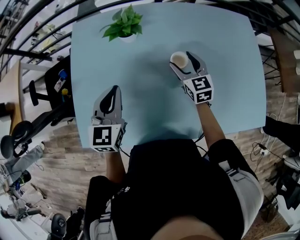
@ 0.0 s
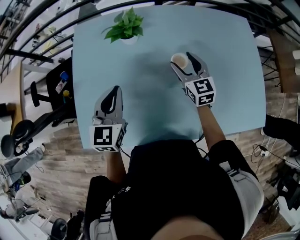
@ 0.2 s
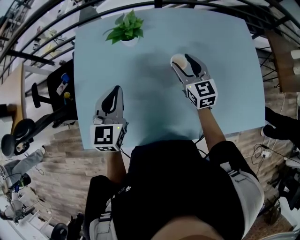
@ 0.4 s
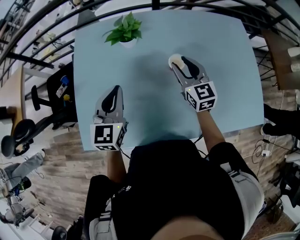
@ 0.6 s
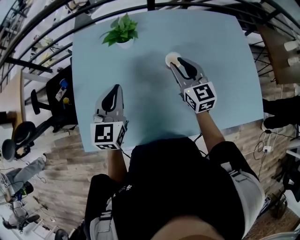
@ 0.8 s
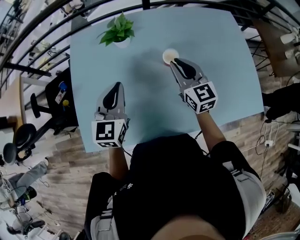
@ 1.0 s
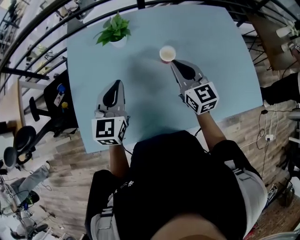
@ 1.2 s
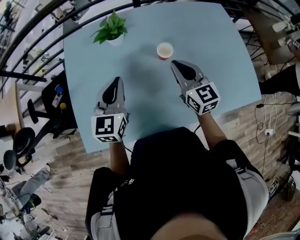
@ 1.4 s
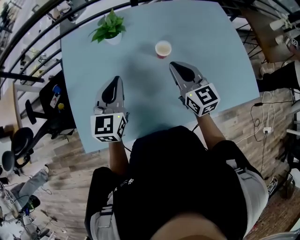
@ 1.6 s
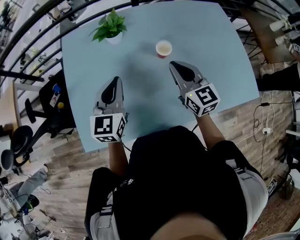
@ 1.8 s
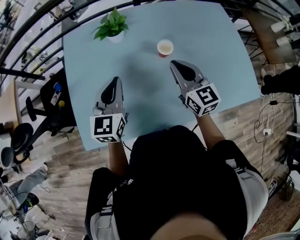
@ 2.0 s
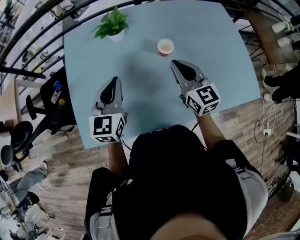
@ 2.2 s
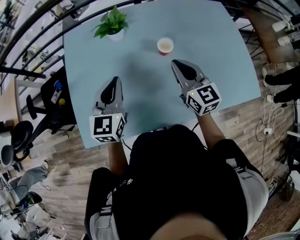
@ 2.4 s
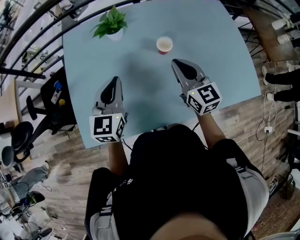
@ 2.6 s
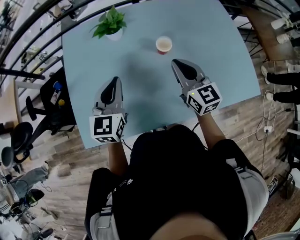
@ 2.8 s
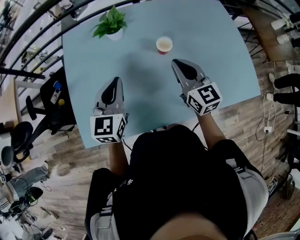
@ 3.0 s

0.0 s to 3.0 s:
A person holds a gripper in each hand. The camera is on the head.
0.0 to 1.6 s: The right gripper heads backward and upward, covering some 15 cm, and closes up.
1.6 to 3.0 s: The grippers move only a little.

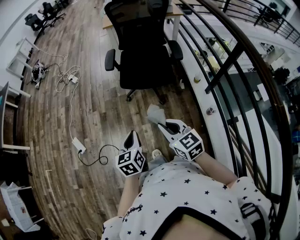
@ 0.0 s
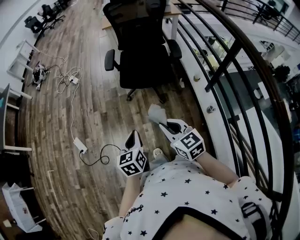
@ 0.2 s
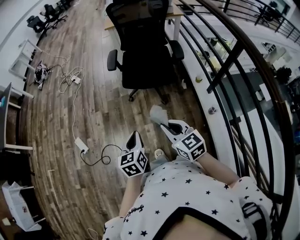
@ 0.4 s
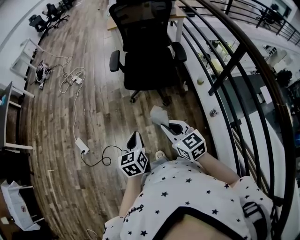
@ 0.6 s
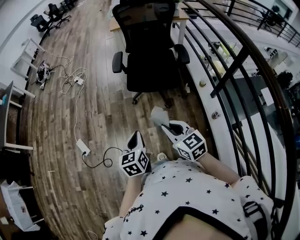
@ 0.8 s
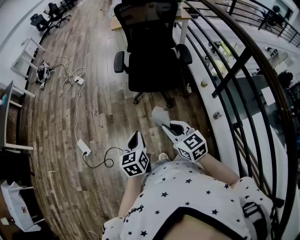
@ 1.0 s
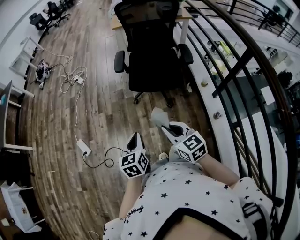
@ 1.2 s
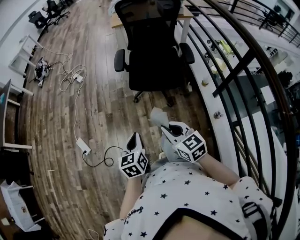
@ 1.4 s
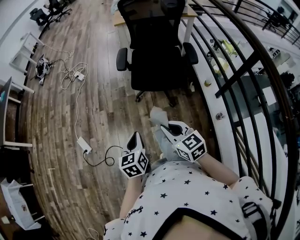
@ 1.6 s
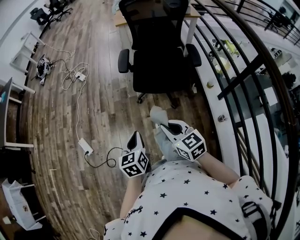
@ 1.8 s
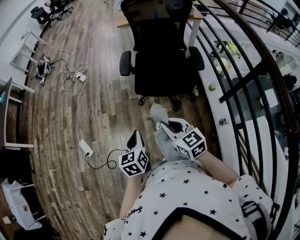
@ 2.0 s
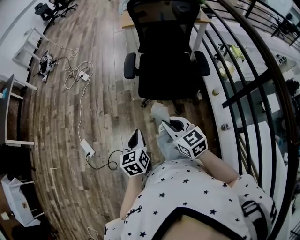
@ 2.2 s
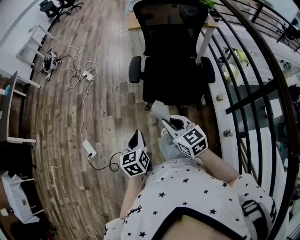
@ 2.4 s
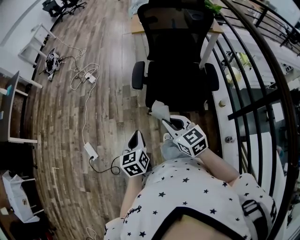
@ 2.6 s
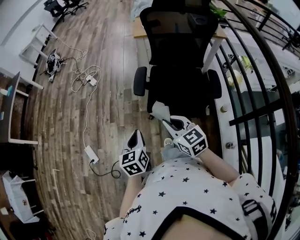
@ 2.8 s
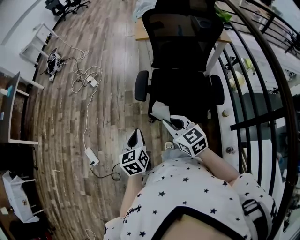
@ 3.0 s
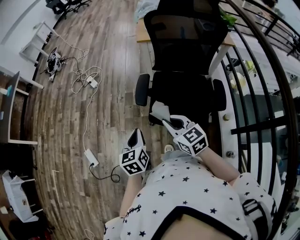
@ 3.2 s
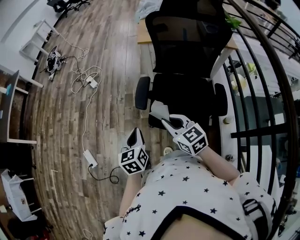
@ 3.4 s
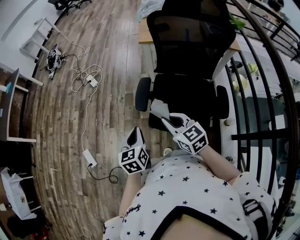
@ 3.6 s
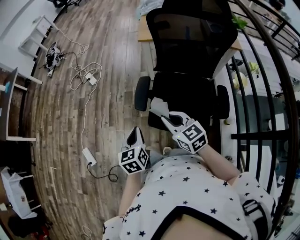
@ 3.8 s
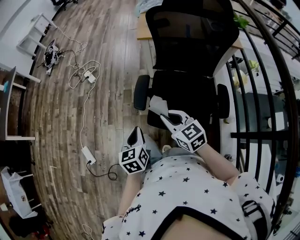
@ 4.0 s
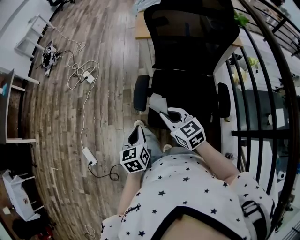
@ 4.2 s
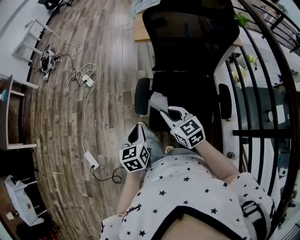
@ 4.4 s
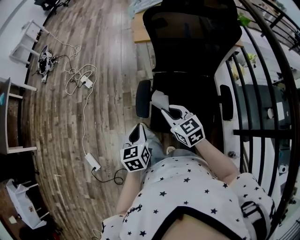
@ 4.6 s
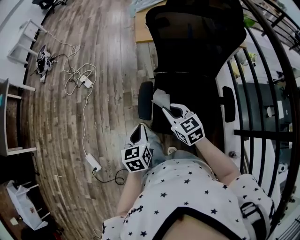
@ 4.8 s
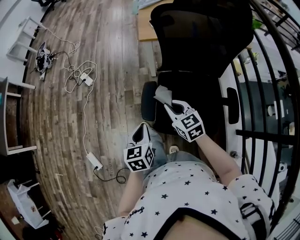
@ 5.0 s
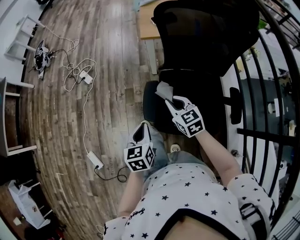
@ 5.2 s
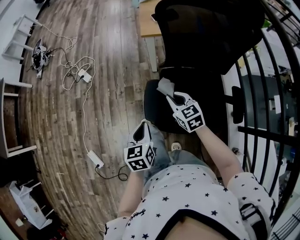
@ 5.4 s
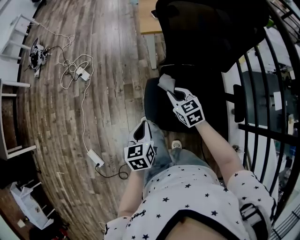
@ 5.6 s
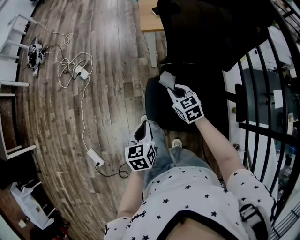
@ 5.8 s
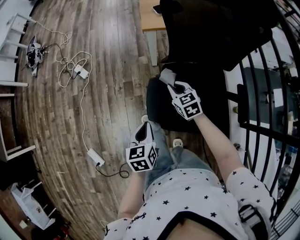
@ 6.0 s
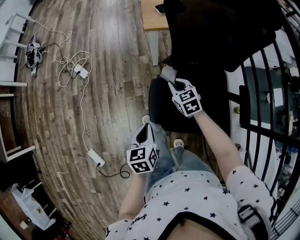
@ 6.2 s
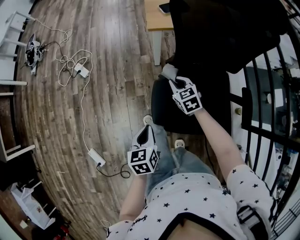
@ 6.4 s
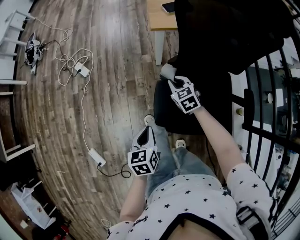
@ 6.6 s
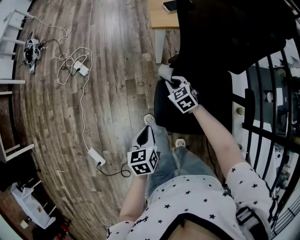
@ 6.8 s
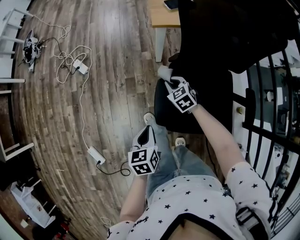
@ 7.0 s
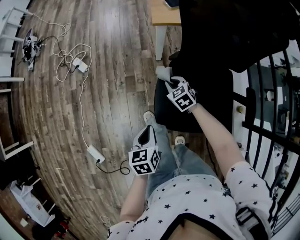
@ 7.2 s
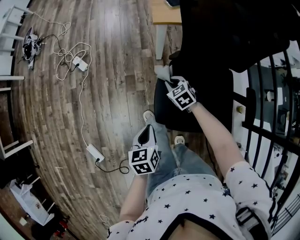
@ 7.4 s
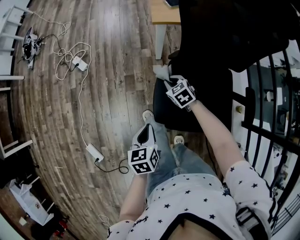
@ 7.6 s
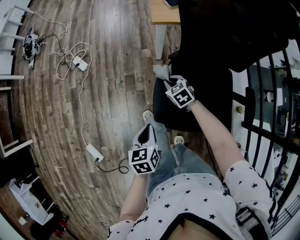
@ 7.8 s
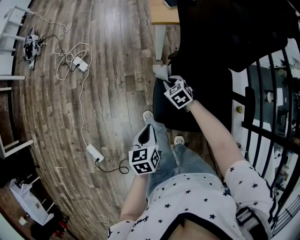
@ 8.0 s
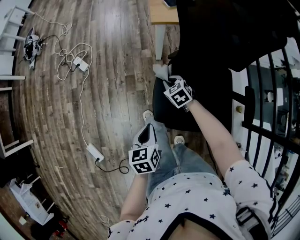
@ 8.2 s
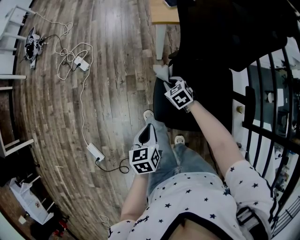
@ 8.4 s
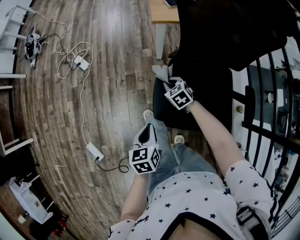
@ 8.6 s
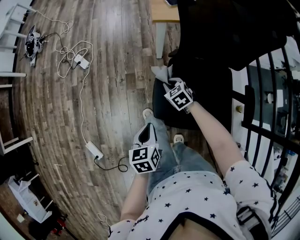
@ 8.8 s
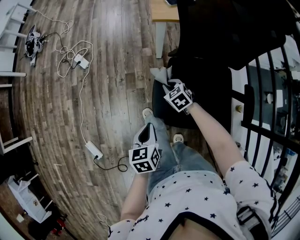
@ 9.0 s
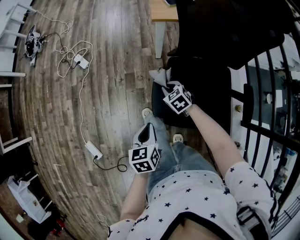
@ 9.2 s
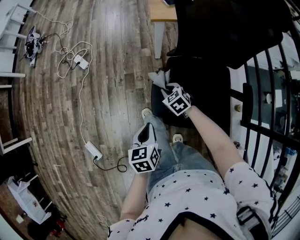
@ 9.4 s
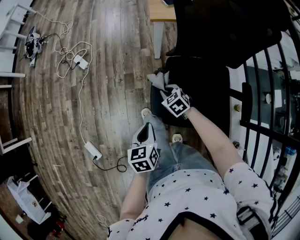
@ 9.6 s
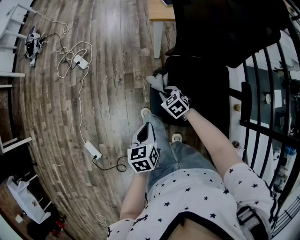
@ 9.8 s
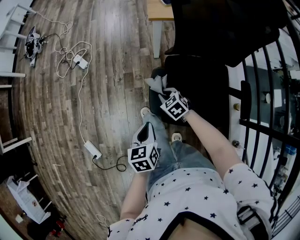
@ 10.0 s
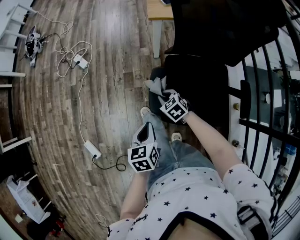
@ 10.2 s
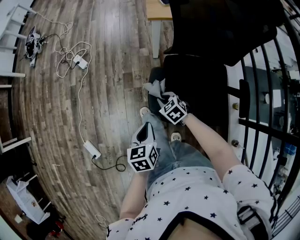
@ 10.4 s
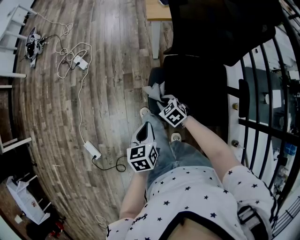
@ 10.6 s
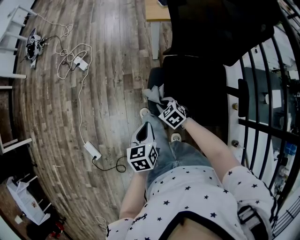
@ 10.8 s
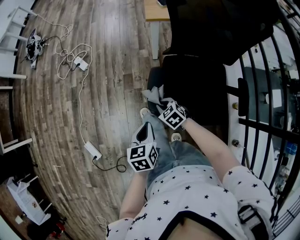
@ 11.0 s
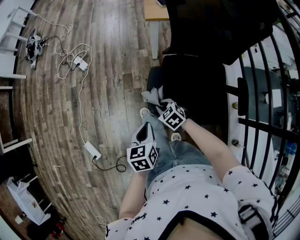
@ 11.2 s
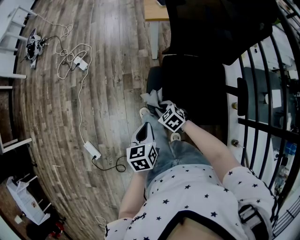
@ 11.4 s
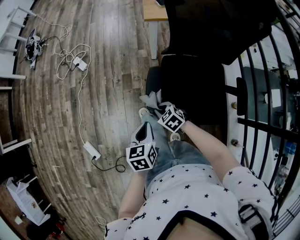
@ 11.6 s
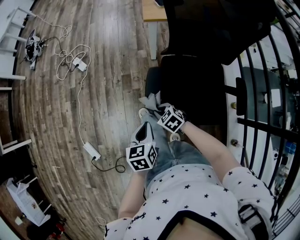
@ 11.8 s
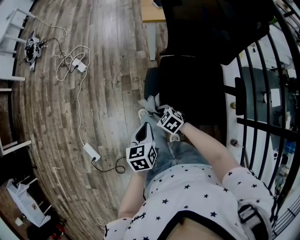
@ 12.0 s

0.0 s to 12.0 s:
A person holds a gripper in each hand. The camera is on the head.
0.0 to 1.6 s: Both grippers travel together forward, some 5 cm.
1.6 to 3.0 s: The grippers both shift forward by roughly 30 cm.
3.0 to 4.4 s: The left gripper goes approximately 15 cm forward and to the right. The right gripper moves forward, some 15 cm.
4.4 to 6.0 s: The right gripper moves forward and downward, about 25 cm; the left gripper goes roughly 10 cm forward and downward.
6.0 to 7.6 s: The right gripper shifts roughly 10 cm downward.
7.6 to 9.0 s: There are only small adjustments of the grippers.
9.0 to 10.4 s: The right gripper moves backward, approximately 10 cm.
10.4 to 12.0 s: The right gripper goes some 5 cm backward.

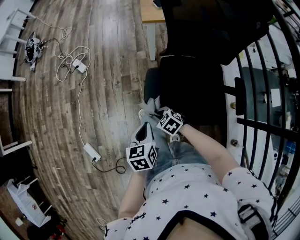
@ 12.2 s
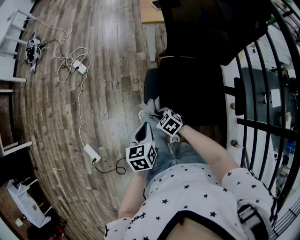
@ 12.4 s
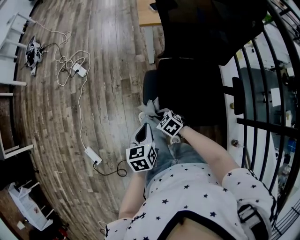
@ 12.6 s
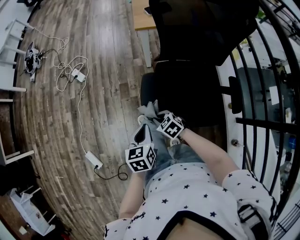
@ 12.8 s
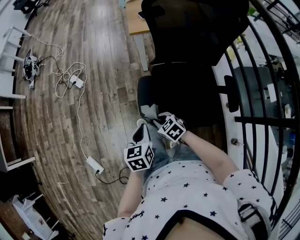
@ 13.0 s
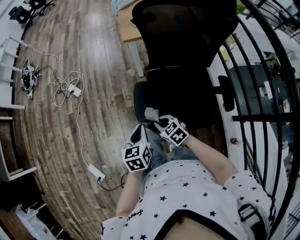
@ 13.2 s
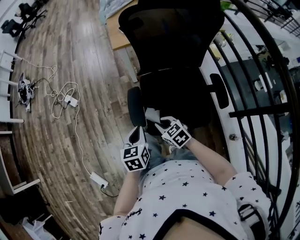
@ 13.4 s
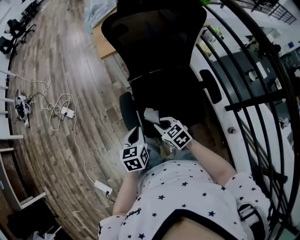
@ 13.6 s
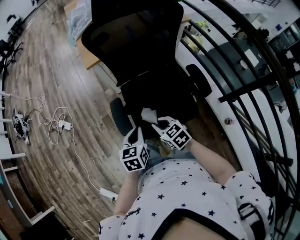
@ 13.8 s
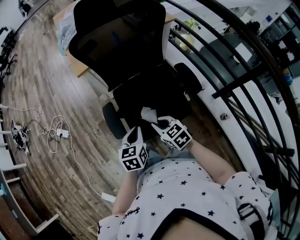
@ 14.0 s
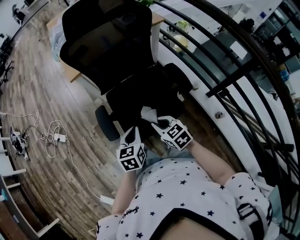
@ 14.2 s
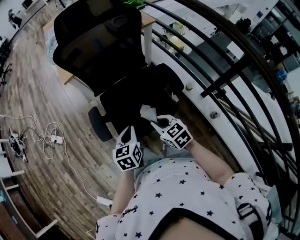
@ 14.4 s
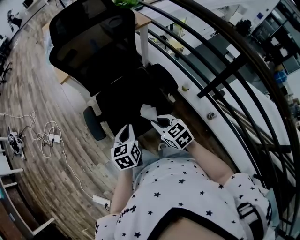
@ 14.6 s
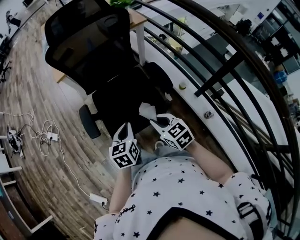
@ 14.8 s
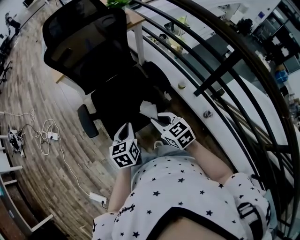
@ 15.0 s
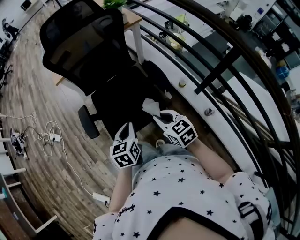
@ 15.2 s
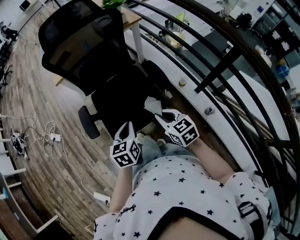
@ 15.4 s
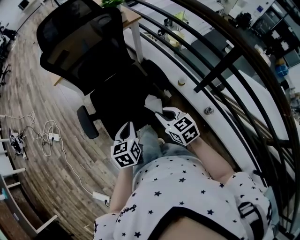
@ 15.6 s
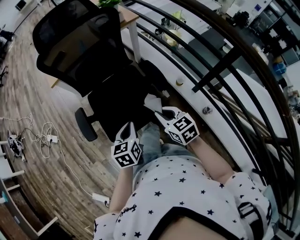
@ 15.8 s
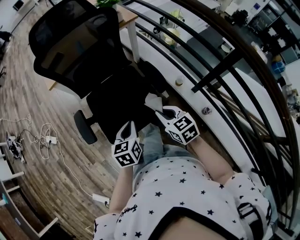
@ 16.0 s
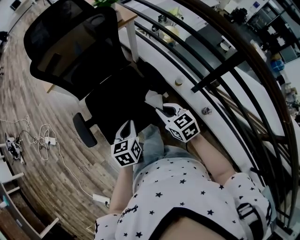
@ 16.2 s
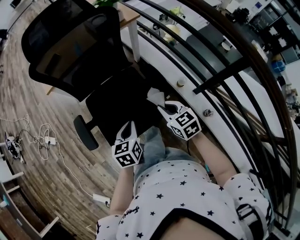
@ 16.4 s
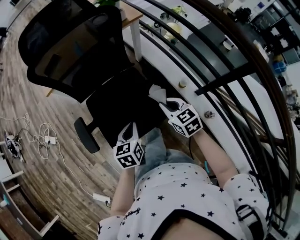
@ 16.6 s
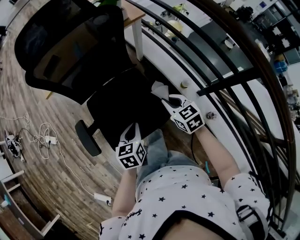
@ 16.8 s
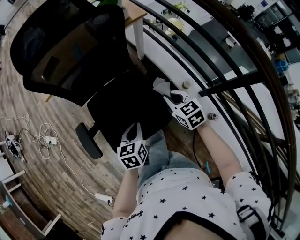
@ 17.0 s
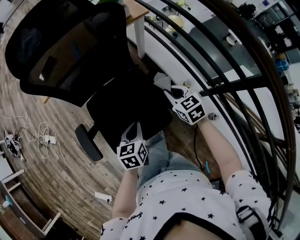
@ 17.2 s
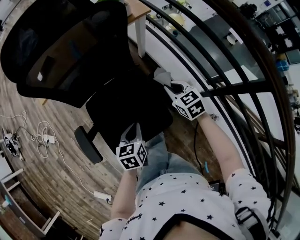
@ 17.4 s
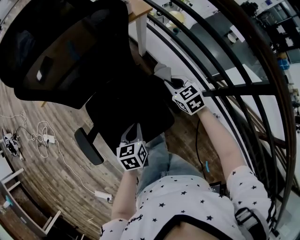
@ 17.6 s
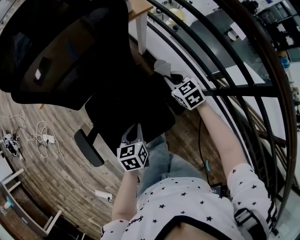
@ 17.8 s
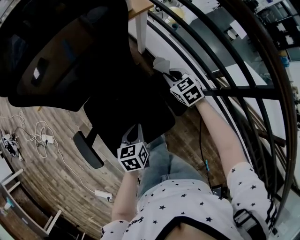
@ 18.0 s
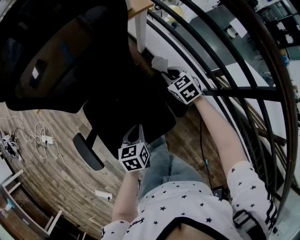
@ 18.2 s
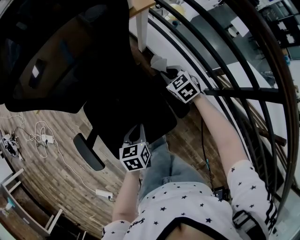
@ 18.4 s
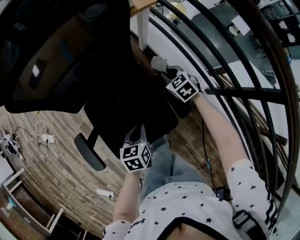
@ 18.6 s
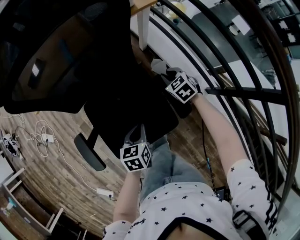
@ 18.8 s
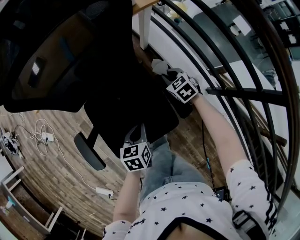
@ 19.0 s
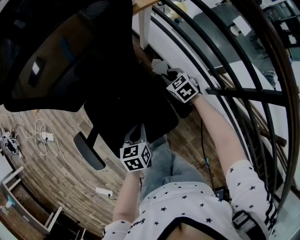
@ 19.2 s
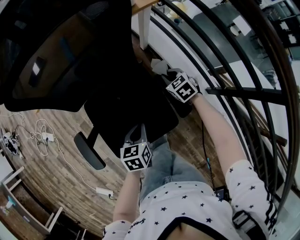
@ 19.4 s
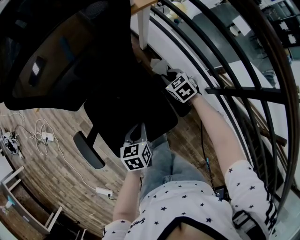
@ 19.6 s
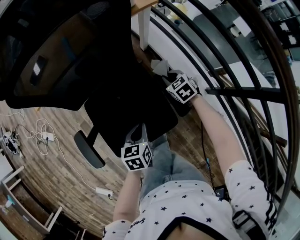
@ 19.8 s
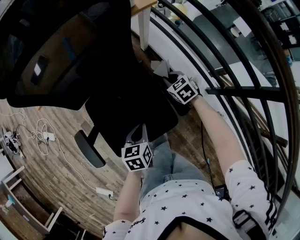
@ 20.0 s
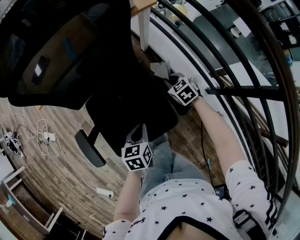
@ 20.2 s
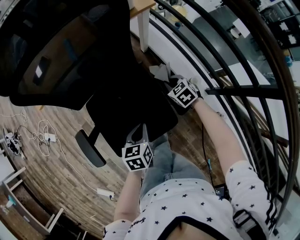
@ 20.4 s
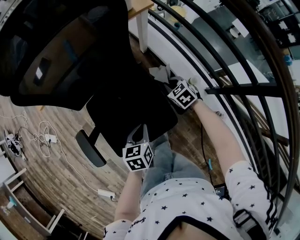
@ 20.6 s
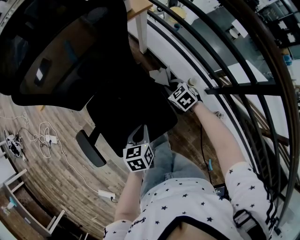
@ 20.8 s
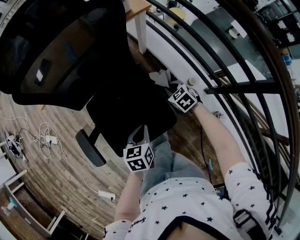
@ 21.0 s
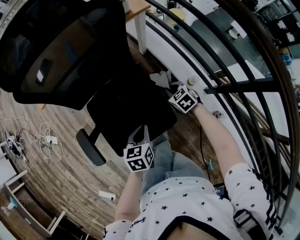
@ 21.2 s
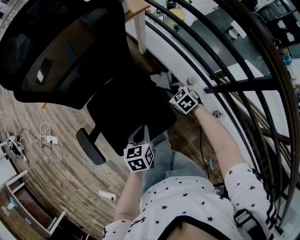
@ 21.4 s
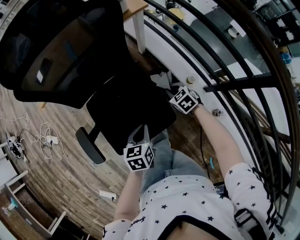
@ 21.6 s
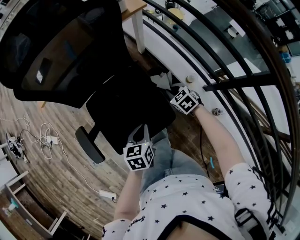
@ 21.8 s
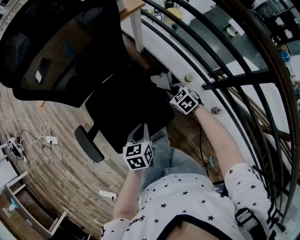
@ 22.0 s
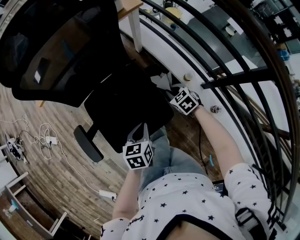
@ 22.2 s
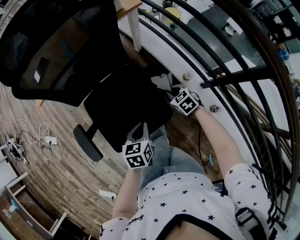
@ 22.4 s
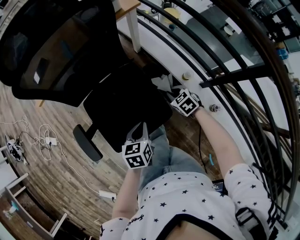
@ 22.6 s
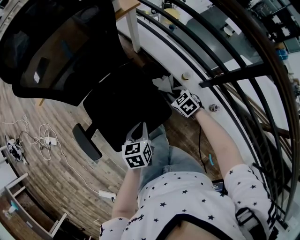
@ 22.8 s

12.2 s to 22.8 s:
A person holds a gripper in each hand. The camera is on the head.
12.2 to 13.8 s: The left gripper shifts by roughly 10 cm, and rotates about 30 degrees, while the right gripper moves some 20 cm, and changes its angle by approximately 40 degrees.
13.8 to 15.2 s: The grippers both shift to the right and backward by approximately 25 cm.
15.2 to 16.8 s: The left gripper moves forward and downward, some 10 cm, while the right gripper goes approximately 20 cm forward and to the right.
16.8 to 18.2 s: The left gripper is displaced forward and downward by roughly 10 cm. Meanwhile the right gripper is displaced forward and downward by roughly 20 cm.
18.2 to 19.8 s: The right gripper moves downward, about 5 cm.
19.8 to 21.2 s: The right gripper is displaced backward by about 5 cm.
21.2 to 22.8 s: The right gripper goes some 10 cm backward.
